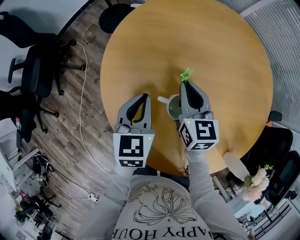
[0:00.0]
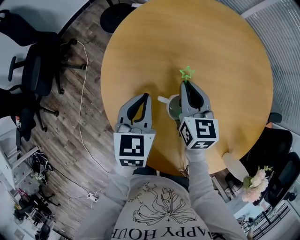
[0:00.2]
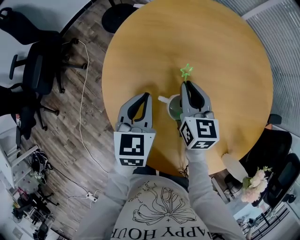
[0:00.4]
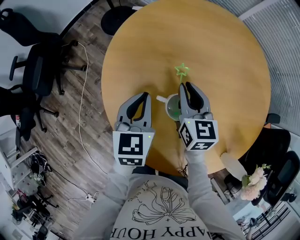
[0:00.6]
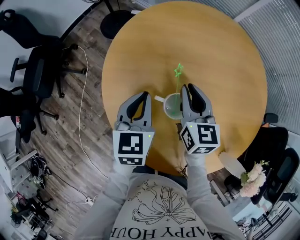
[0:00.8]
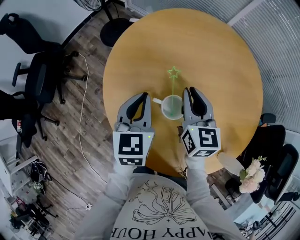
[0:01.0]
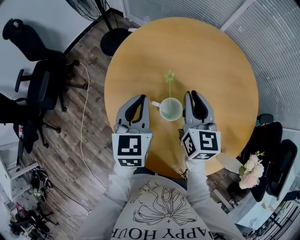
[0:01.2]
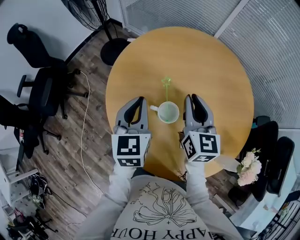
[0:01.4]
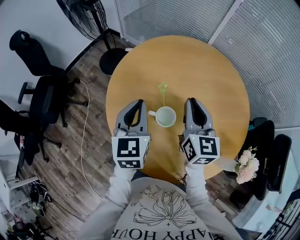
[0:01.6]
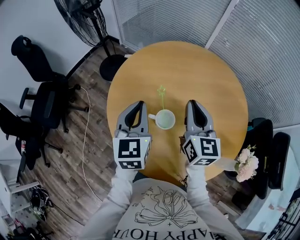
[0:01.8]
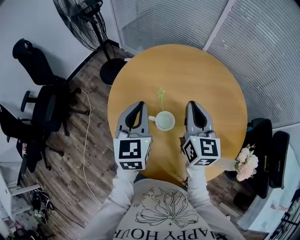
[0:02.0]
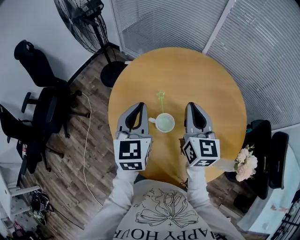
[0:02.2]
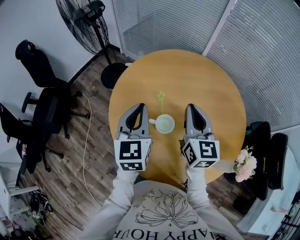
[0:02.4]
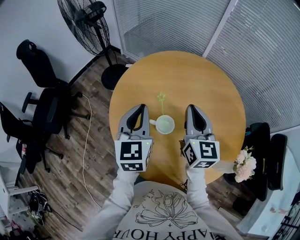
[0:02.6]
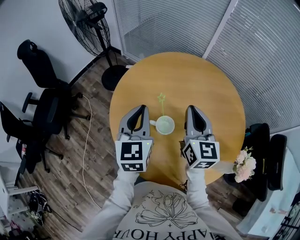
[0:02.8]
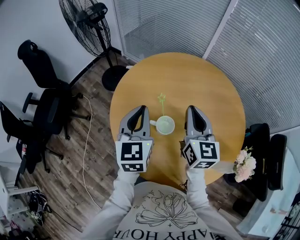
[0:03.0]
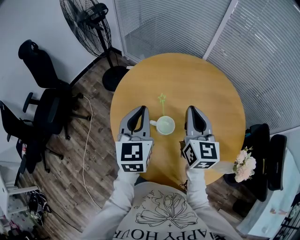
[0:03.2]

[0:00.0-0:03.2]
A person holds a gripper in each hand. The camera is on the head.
0.0 to 1.6 s: The right gripper shifts roughly 20 cm upward and backward, while the left gripper heads upward, covering some 15 cm.
1.6 to 3.2 s: The left gripper goes about 5 cm upward; the right gripper ends up roughly 5 cm from where it was.

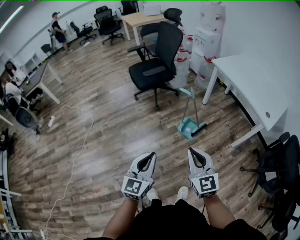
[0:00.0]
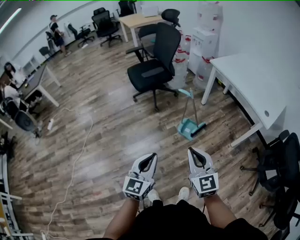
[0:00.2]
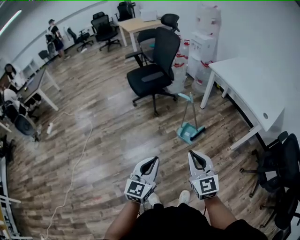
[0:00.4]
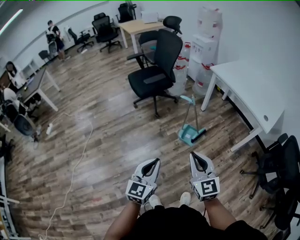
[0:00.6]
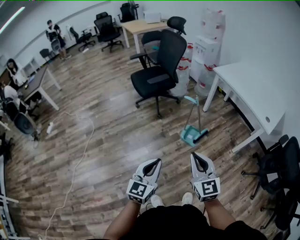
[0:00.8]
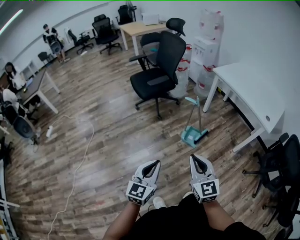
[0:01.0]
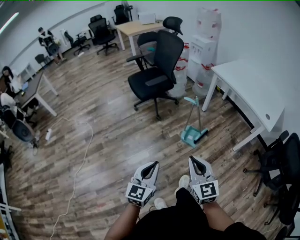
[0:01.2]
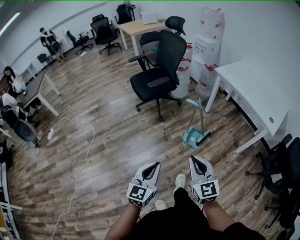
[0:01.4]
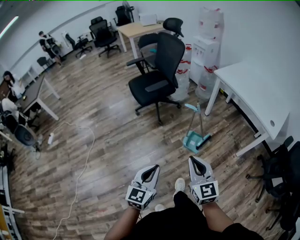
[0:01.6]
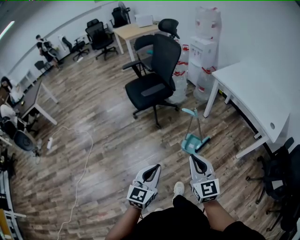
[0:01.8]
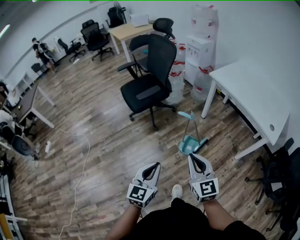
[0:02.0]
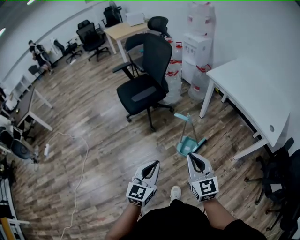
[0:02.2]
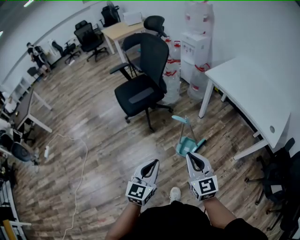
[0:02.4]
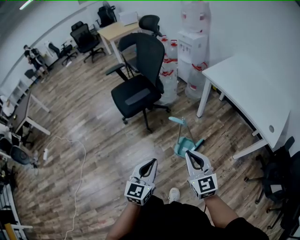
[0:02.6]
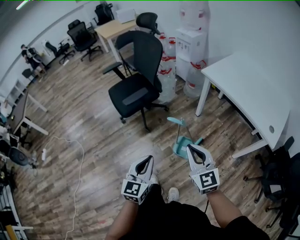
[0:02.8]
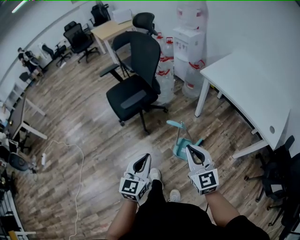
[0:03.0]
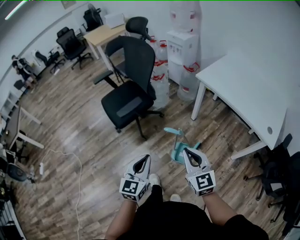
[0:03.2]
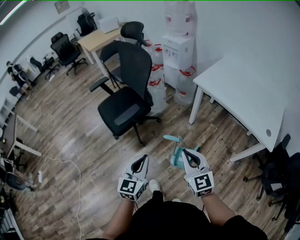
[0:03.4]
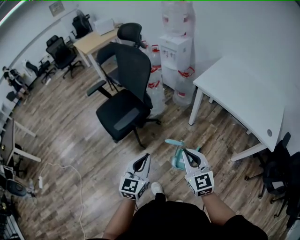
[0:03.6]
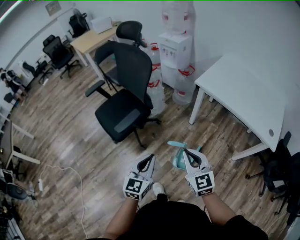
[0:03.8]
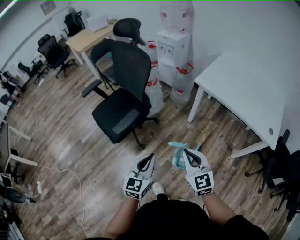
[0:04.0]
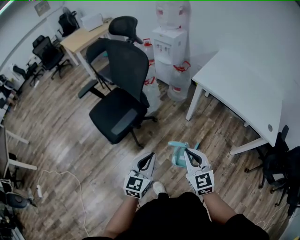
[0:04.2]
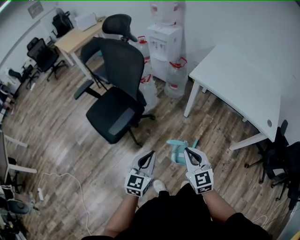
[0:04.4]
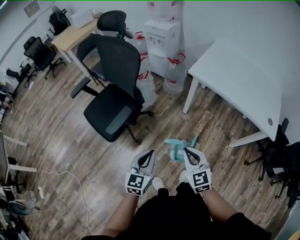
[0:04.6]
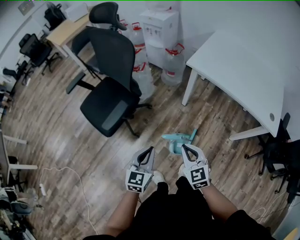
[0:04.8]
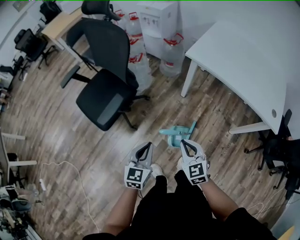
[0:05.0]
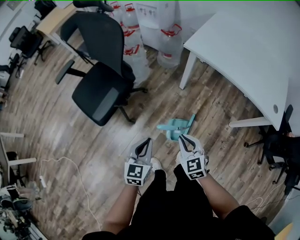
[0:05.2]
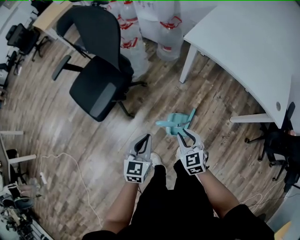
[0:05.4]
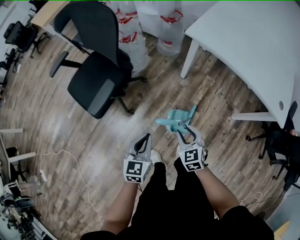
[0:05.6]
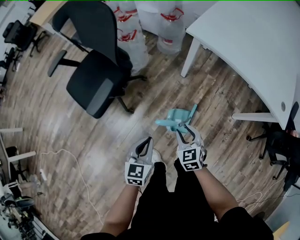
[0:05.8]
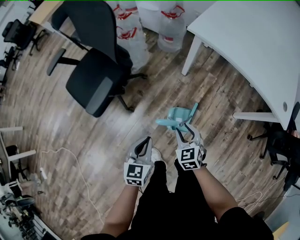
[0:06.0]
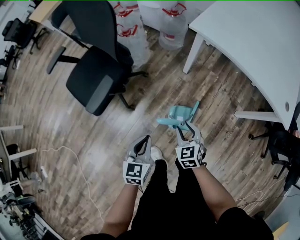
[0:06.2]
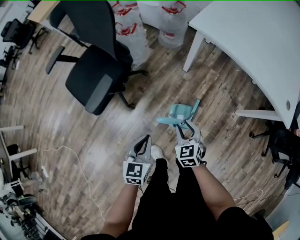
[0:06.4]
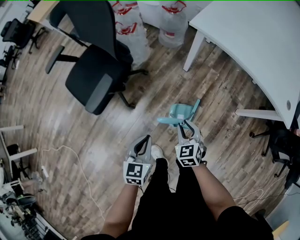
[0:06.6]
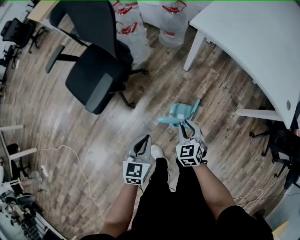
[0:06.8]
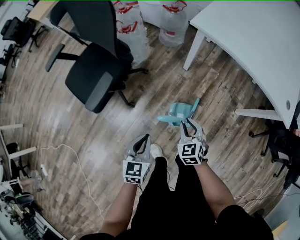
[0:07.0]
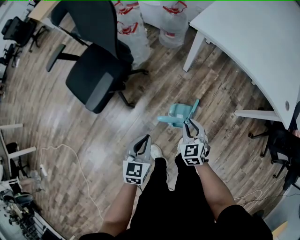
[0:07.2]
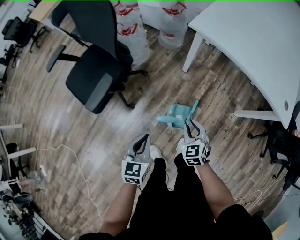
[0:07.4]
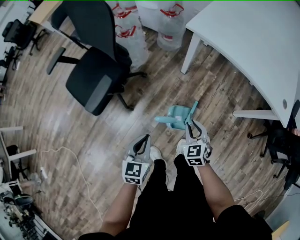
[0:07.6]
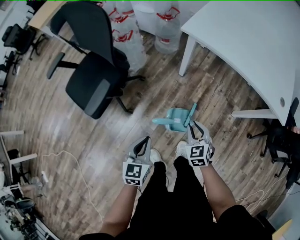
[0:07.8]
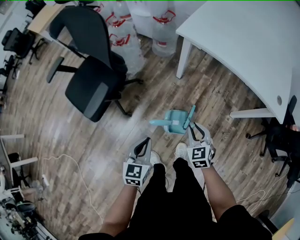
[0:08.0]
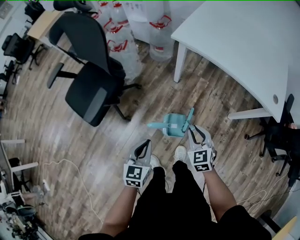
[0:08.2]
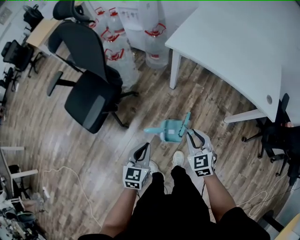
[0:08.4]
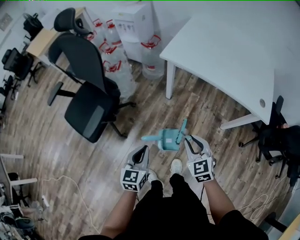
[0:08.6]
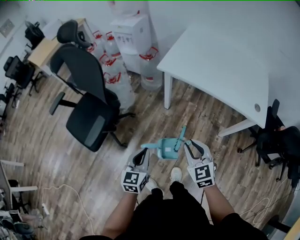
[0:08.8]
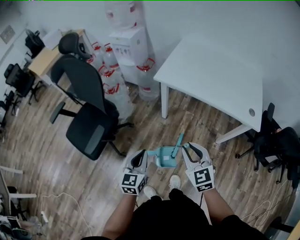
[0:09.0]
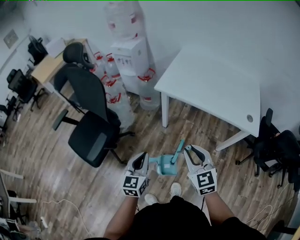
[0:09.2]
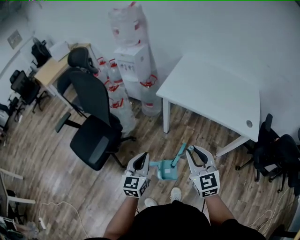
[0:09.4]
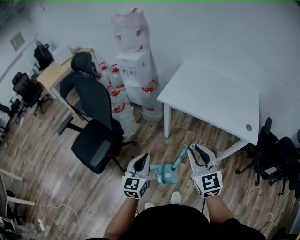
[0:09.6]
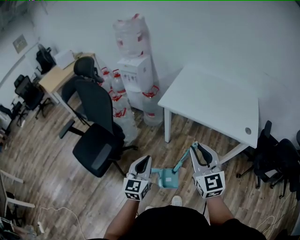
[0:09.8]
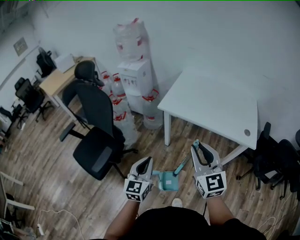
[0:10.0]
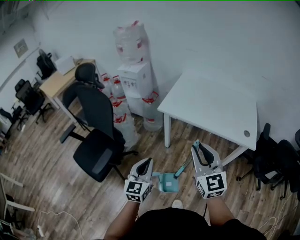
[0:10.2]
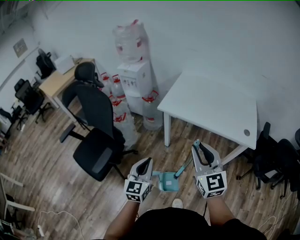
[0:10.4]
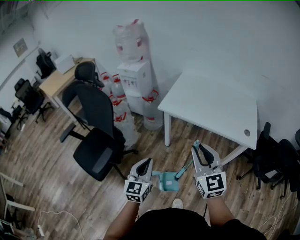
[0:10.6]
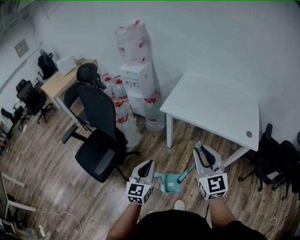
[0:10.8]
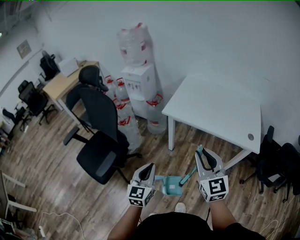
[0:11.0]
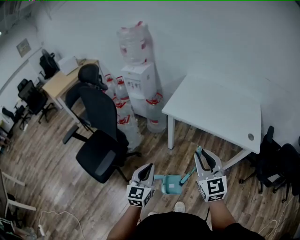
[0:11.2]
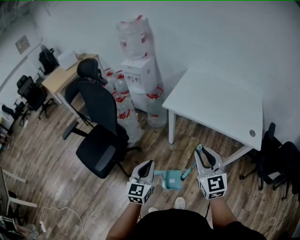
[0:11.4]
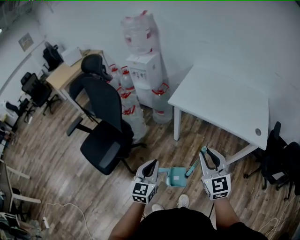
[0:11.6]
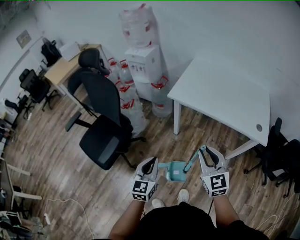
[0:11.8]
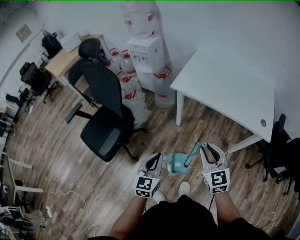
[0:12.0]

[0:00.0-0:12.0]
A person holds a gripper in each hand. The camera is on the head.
0.0 to 1.6 s: The two grippers go some 10 cm forward and to the left.
1.6 to 3.0 s: Both grippers travel together forward, roughly 25 cm.
3.0 to 4.4 s: The right gripper heads forward, to the left and downward, covering some 15 cm. The left gripper travels forward by some 20 cm.
4.4 to 6.0 s: The right gripper is displaced downward by some 20 cm, turns by approximately 20 degrees, and opens up. The left gripper heads downward, covering roughly 15 cm.
6.0 to 7.6 s: The grippers move only a little.
7.6 to 9.0 s: The left gripper goes roughly 15 cm upward, to the right and forward, while the right gripper goes some 20 cm upward.
9.0 to 10.4 s: The left gripper goes some 10 cm upward. Meanwhile the right gripper moves upward, some 15 cm, and changes its angle by about 20 degrees.
10.4 to 12.0 s: The left gripper moves downward, about 5 cm. The right gripper travels downward by some 15 cm.

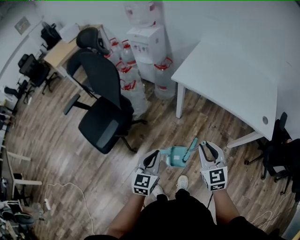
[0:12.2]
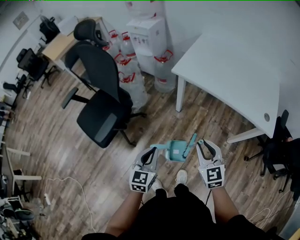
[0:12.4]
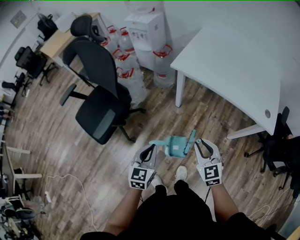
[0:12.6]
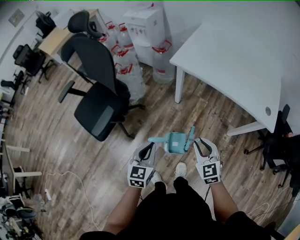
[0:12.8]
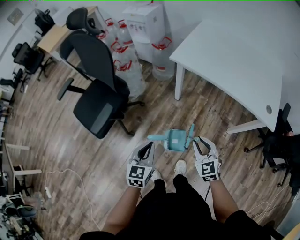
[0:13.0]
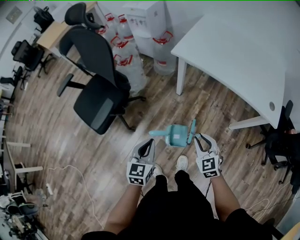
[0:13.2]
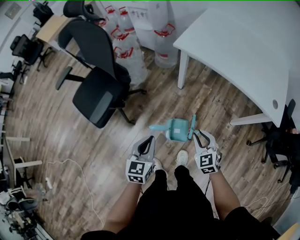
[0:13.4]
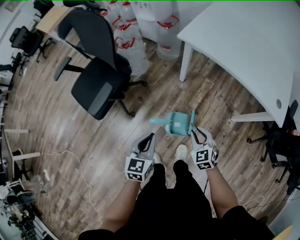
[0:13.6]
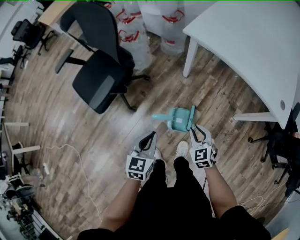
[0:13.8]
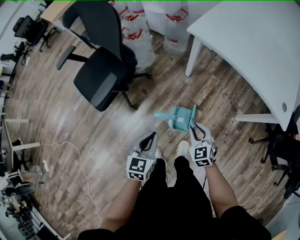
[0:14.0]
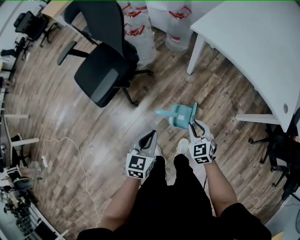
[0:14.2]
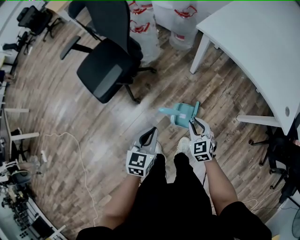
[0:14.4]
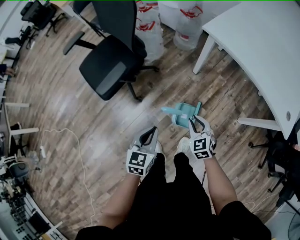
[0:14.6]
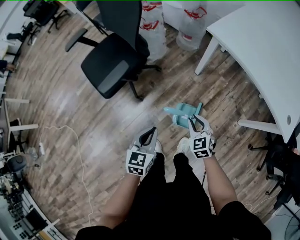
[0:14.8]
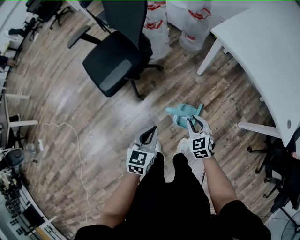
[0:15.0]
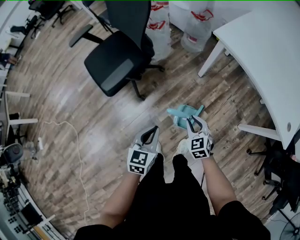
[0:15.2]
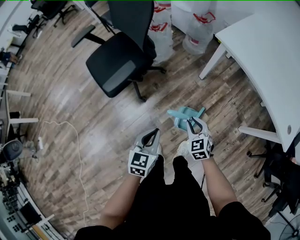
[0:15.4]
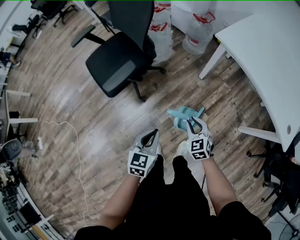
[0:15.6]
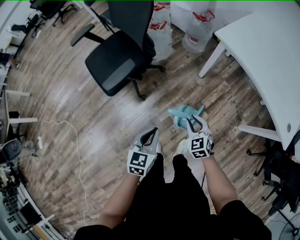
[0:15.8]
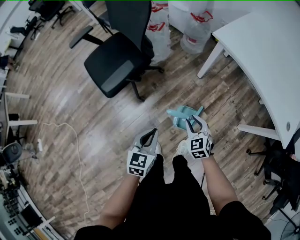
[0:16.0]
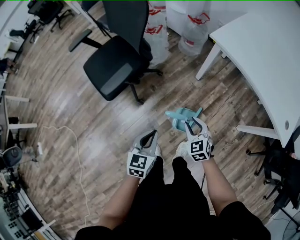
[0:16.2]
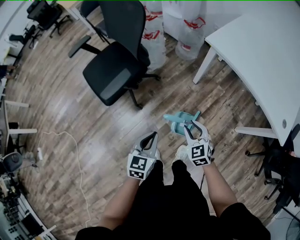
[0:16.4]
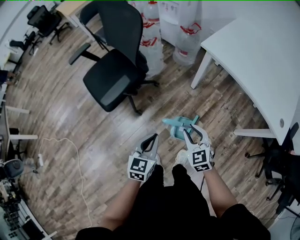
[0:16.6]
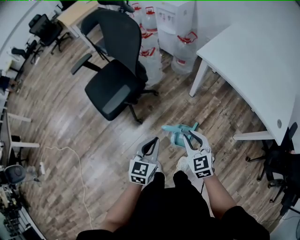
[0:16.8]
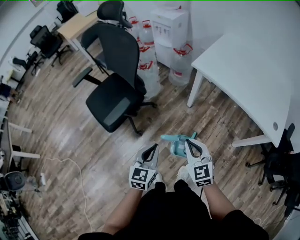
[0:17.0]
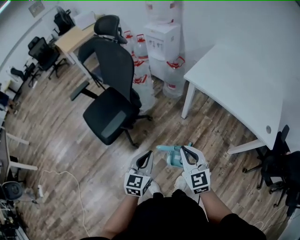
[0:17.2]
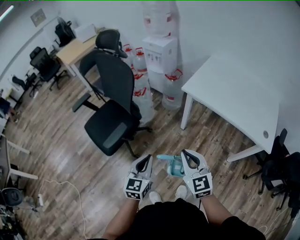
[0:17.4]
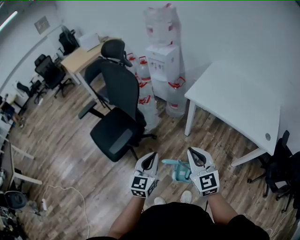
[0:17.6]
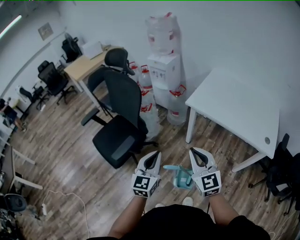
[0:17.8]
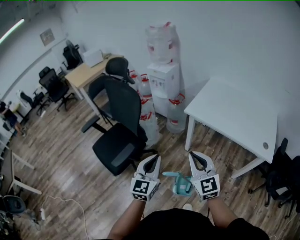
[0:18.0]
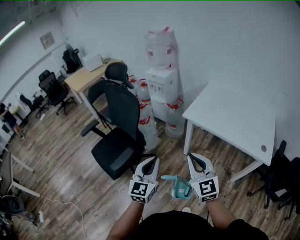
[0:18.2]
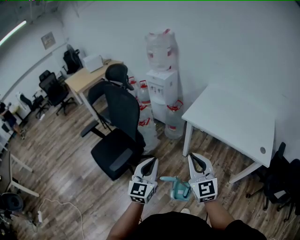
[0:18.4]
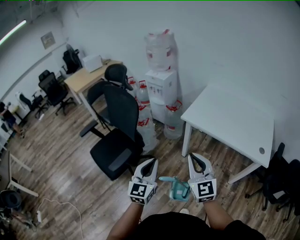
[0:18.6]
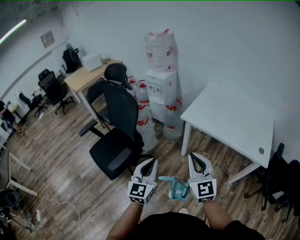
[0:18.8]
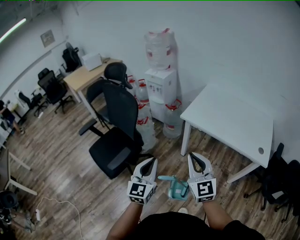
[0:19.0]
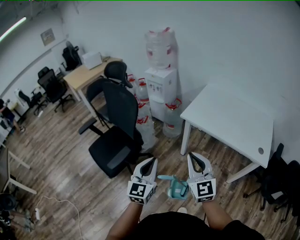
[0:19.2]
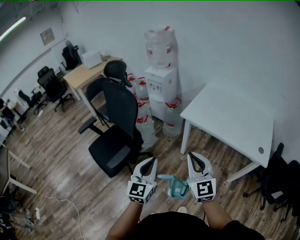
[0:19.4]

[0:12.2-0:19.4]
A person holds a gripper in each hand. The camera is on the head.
12.2 to 13.6 s: The right gripper goes about 20 cm downward, and rotates about 20 degrees; the left gripper moves downward, approximately 10 cm.
13.6 to 15.0 s: The right gripper is displaced to the left by about 10 cm; the left gripper heads to the left, covering roughly 5 cm.
15.0 to 16.6 s: The right gripper moves upward, some 10 cm.
16.6 to 18.0 s: The grippers both shift upward by approximately 20 cm. The right gripper rotates approximately 30 degrees, and closes up. The left gripper turns by about 30 degrees.
18.0 to 19.4 s: The grippers make only small movements.

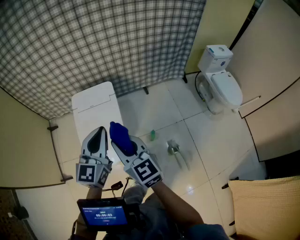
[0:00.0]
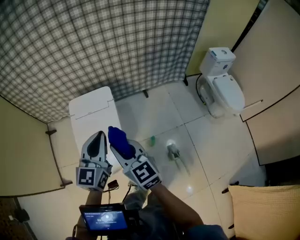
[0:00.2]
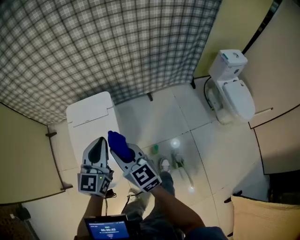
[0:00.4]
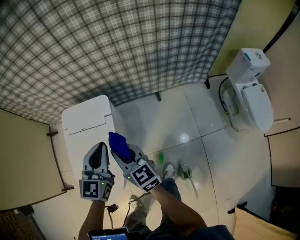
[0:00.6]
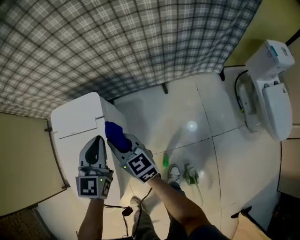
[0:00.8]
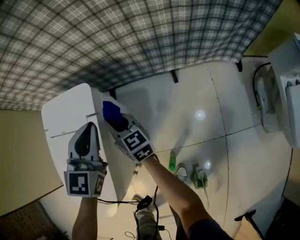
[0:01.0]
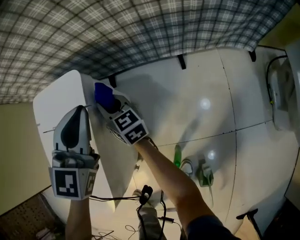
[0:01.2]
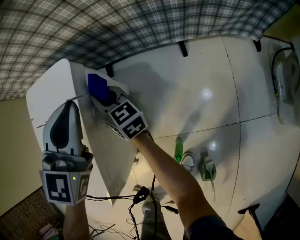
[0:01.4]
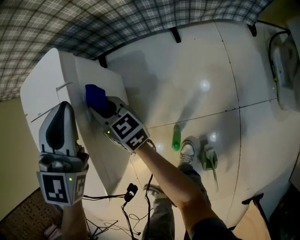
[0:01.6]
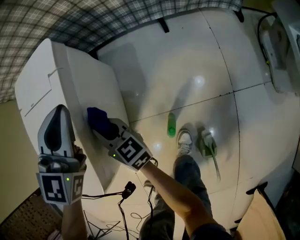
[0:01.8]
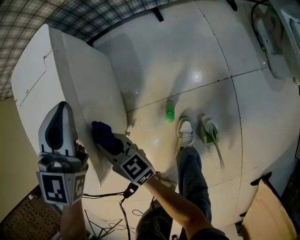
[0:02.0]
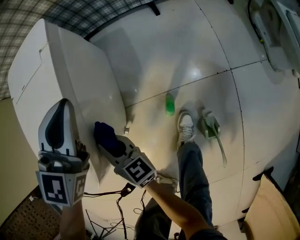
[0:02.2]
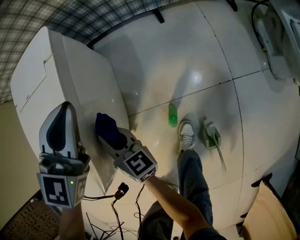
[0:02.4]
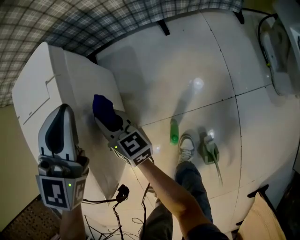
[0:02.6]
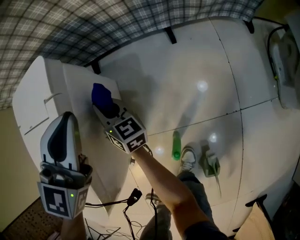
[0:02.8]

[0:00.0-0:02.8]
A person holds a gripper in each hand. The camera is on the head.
0.0 to 1.4 s: Both grippers are carried forward, approximately 50 cm. Both grippers move downward, some 40 cm. The left gripper changes its angle by some 30 degrees; the right gripper swivels about 30 degrees.
1.4 to 2.8 s: The left gripper reaches about 20 cm backward, then returns; the right gripper moves downward, approximately 10 cm, and travels backward and back again, some 35 cm each way.
